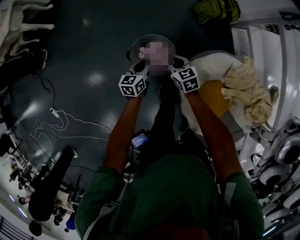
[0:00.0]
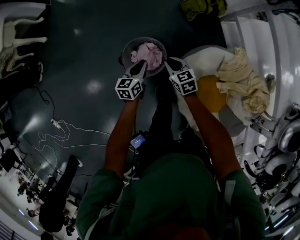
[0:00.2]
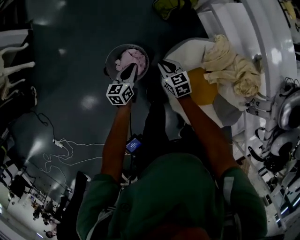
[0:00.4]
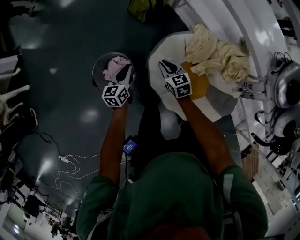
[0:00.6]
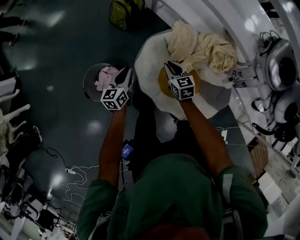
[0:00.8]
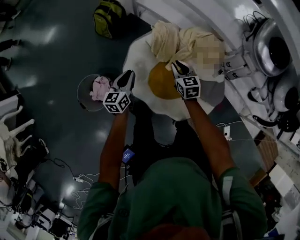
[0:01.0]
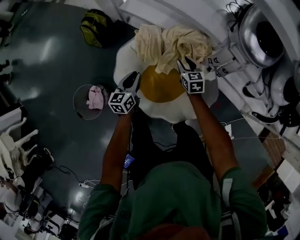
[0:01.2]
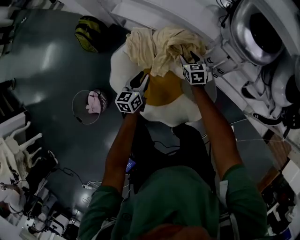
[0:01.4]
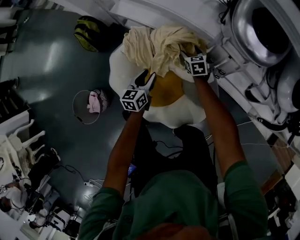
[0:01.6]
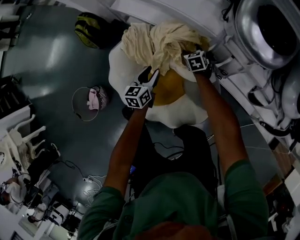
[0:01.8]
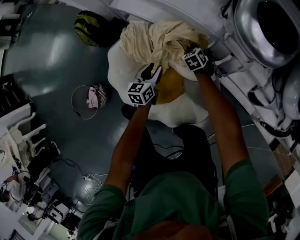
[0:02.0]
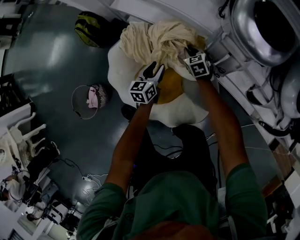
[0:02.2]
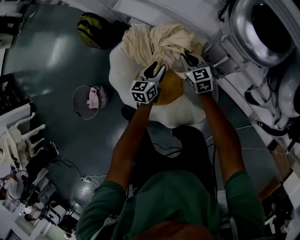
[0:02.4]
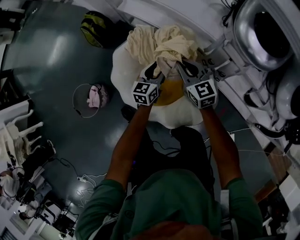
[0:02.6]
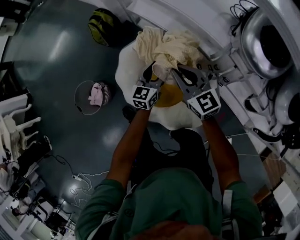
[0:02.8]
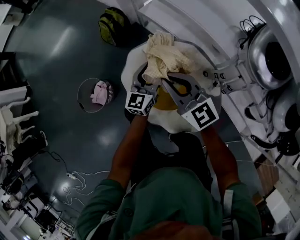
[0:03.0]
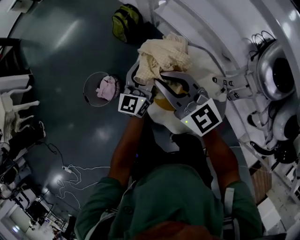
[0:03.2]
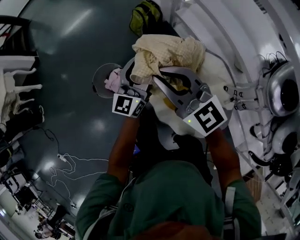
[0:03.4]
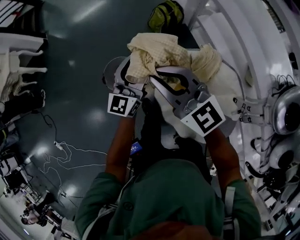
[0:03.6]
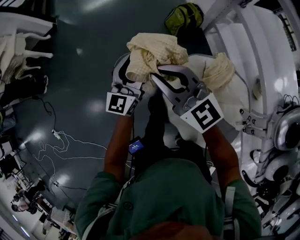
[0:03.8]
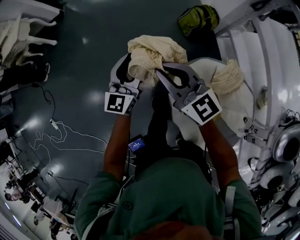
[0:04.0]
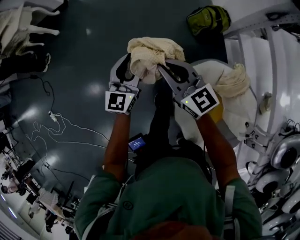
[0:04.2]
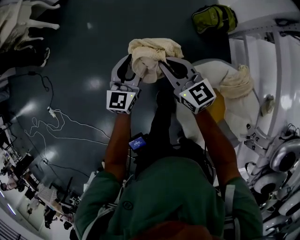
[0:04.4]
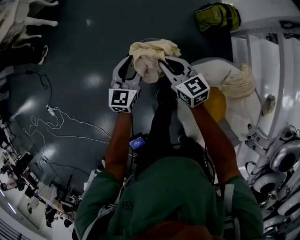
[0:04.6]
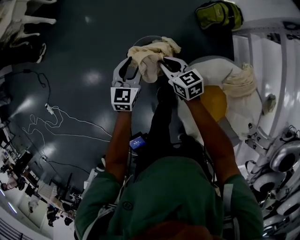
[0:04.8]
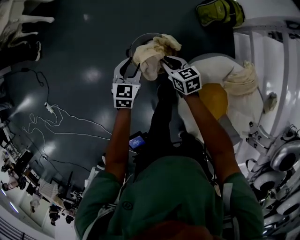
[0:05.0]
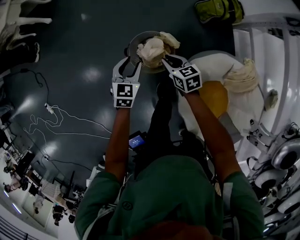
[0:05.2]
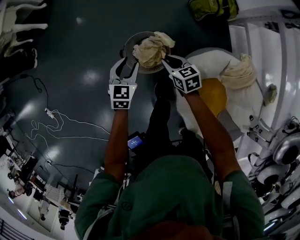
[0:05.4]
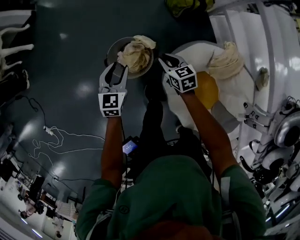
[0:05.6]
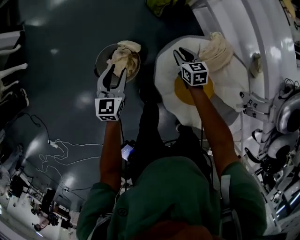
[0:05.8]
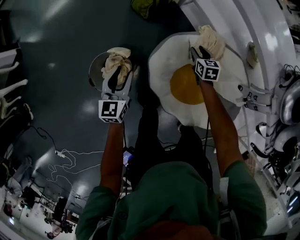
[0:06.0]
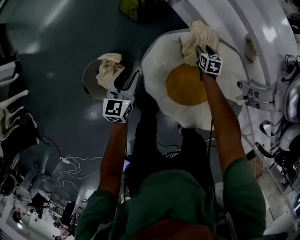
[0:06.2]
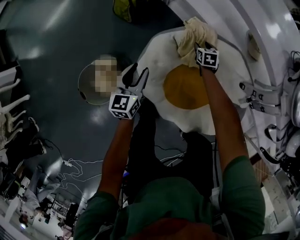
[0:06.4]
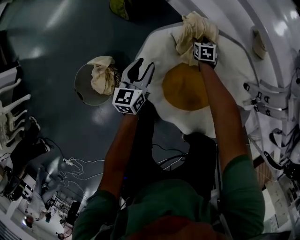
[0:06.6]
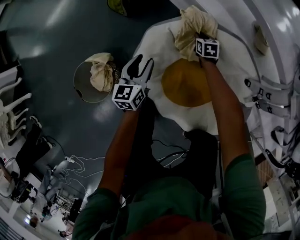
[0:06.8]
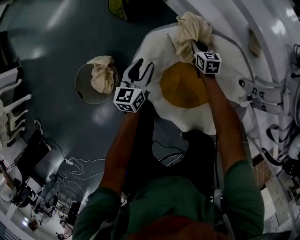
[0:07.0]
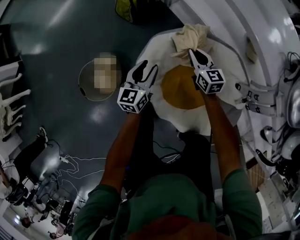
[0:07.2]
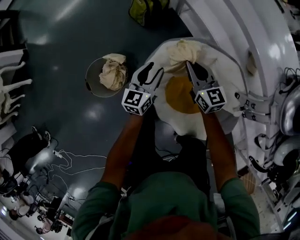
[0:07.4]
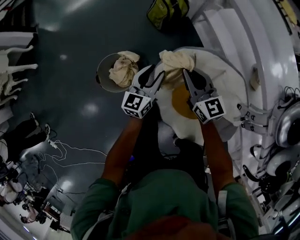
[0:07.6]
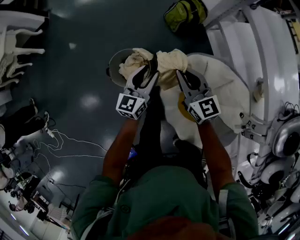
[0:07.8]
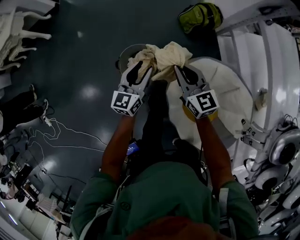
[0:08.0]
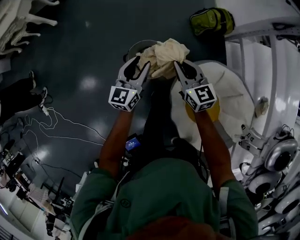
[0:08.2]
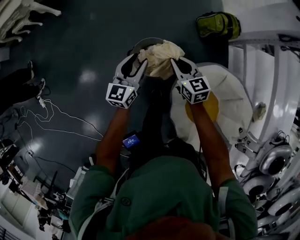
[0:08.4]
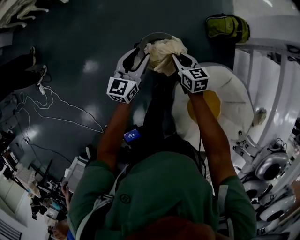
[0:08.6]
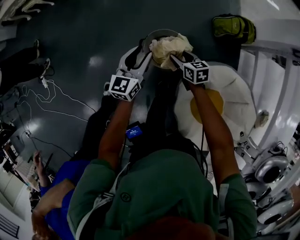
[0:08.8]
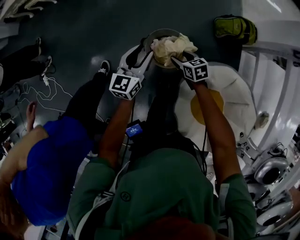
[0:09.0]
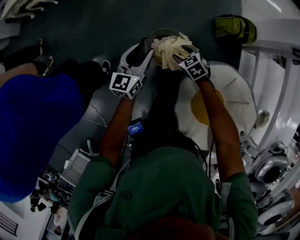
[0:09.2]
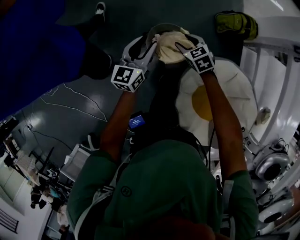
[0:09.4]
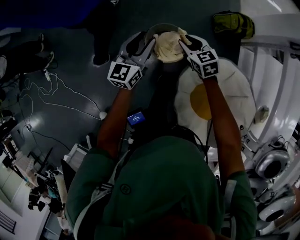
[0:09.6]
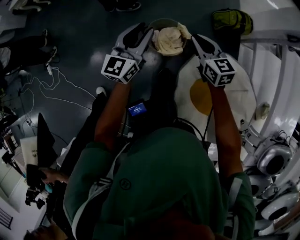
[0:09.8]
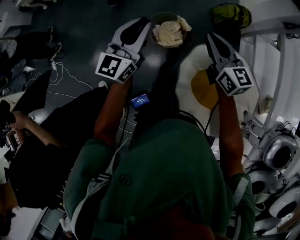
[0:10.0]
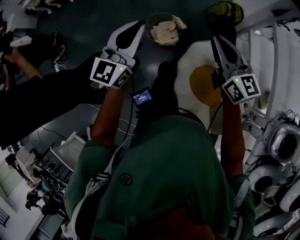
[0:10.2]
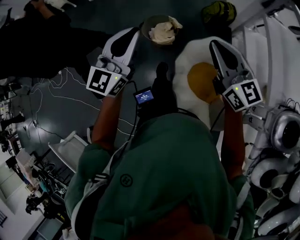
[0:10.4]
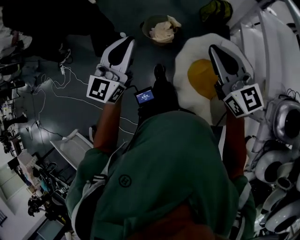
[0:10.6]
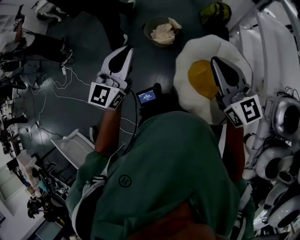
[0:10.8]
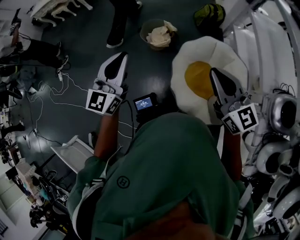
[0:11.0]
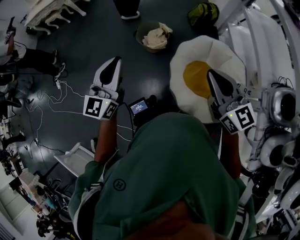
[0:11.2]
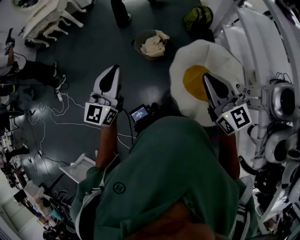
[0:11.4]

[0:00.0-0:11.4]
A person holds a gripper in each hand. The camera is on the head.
0:00.0 to 0:01.4: The pair of grippers is taken roughly 70 cm. The right gripper swivels roughly 60 degrees, and opens. Meanwhile the left gripper turns by roughly 50 degrees.
0:01.4 to 0:02.8: The right gripper goes some 25 cm upward, to the left and backward, rotates approximately 40 degrees, and closes its fingers, while the left gripper is displaced upward and to the right by approximately 10 cm, and opens its fingers.
0:02.8 to 0:04.2: Both grippers are carried roughly 60 cm. The right gripper turns by approximately 40 degrees. Meanwhile the left gripper turns by approximately 50 degrees.
0:04.2 to 0:05.6: The left gripper moves downward, roughly 15 cm, and turns by some 30 degrees; the right gripper travels downward by some 30 cm, and points its fingers some 30 degrees further downward.
0:05.6 to 0:07.2: Both grippers are carried roughly 40 cm. The left gripper changes its angle by some 30 degrees, while the right gripper rotates about 30 degrees, and opens, then closes again.
0:07.2 to 0:08.6: The two grippers travel together, roughly 50 cm. The right gripper turns by some 50 degrees. Meanwhile the left gripper changes its angle by approximately 40 degrees.
0:08.6 to 0:10.0: Both grippers move upward and backward, some 30 cm. The right gripper changes its angle by about 30 degrees, and opens, then closes once more, while the left gripper closes its fingers.
0:10.0 to 0:11.4: The right gripper moves backward and upward, about 40 cm. The left gripper heads backward, covering some 30 cm.

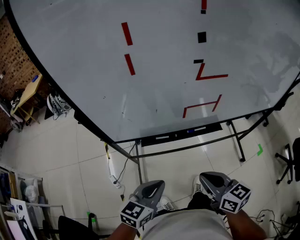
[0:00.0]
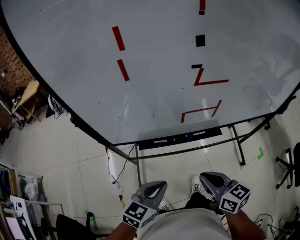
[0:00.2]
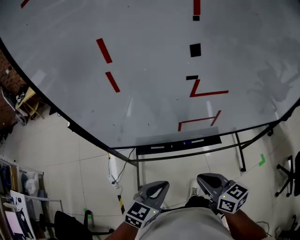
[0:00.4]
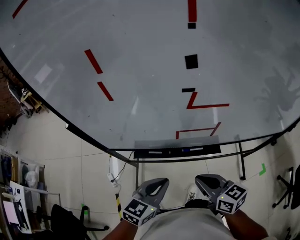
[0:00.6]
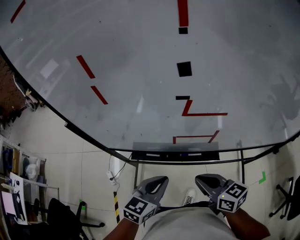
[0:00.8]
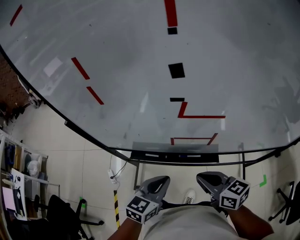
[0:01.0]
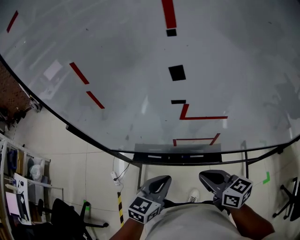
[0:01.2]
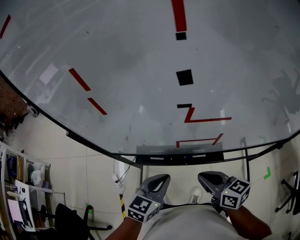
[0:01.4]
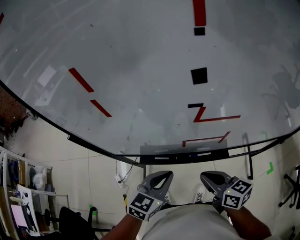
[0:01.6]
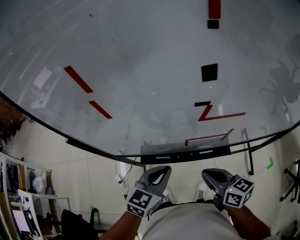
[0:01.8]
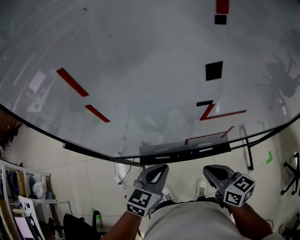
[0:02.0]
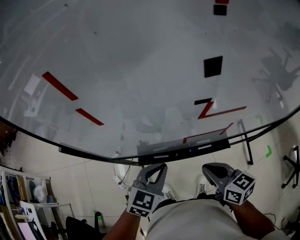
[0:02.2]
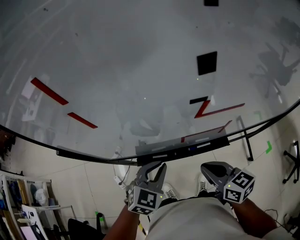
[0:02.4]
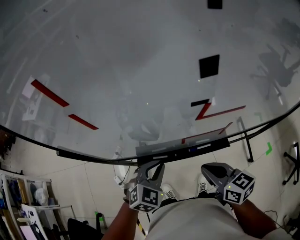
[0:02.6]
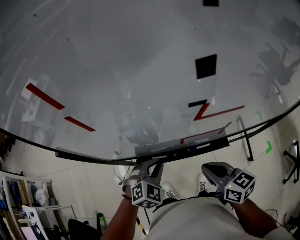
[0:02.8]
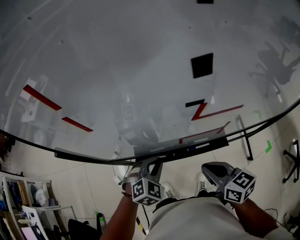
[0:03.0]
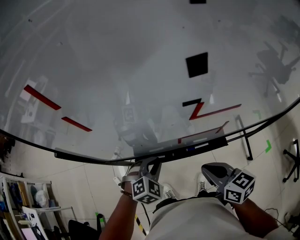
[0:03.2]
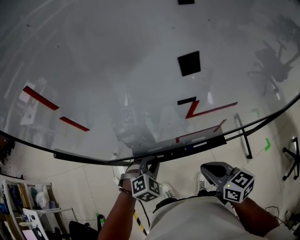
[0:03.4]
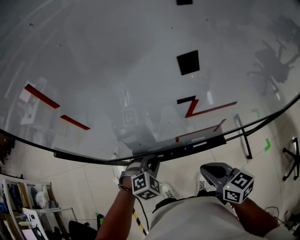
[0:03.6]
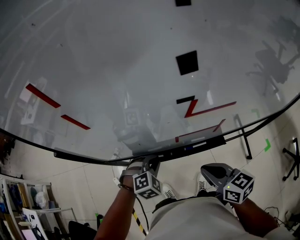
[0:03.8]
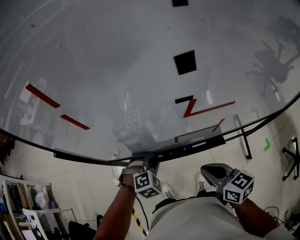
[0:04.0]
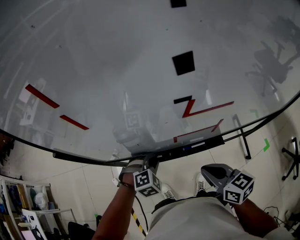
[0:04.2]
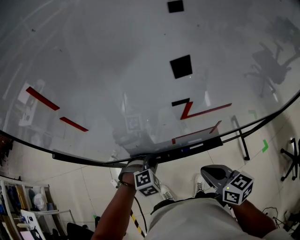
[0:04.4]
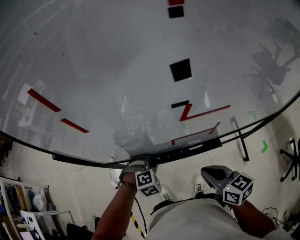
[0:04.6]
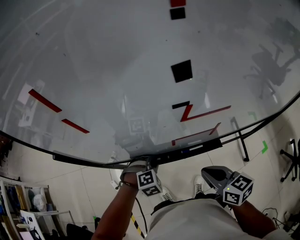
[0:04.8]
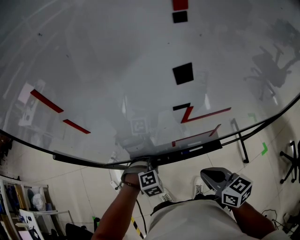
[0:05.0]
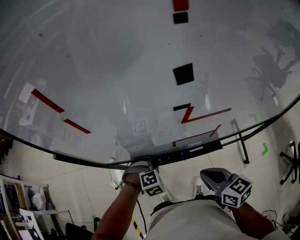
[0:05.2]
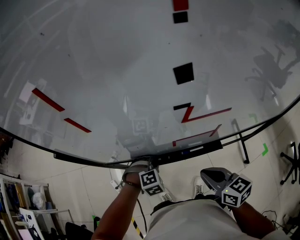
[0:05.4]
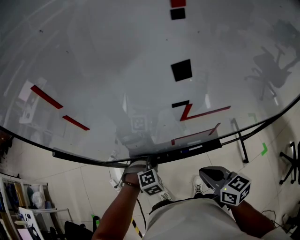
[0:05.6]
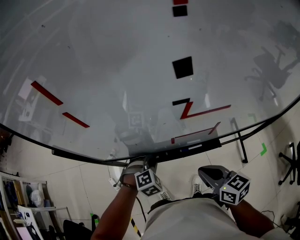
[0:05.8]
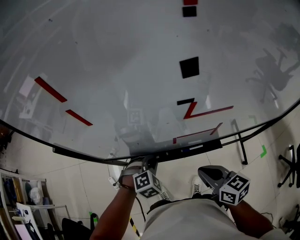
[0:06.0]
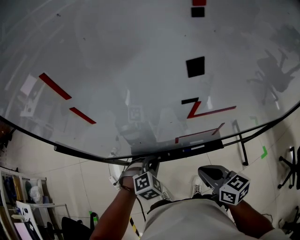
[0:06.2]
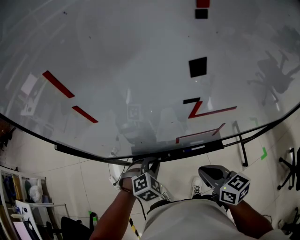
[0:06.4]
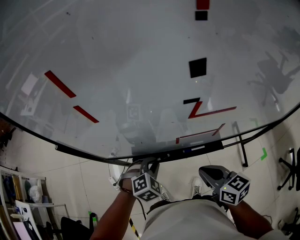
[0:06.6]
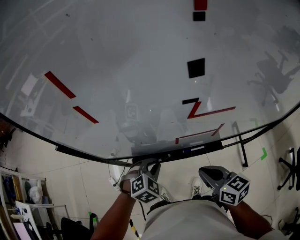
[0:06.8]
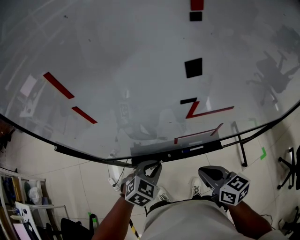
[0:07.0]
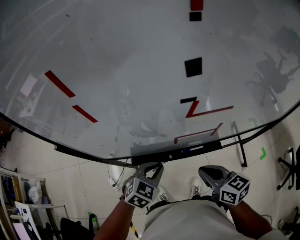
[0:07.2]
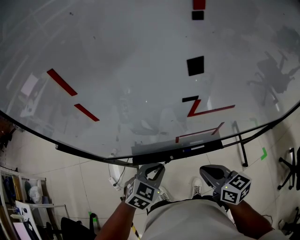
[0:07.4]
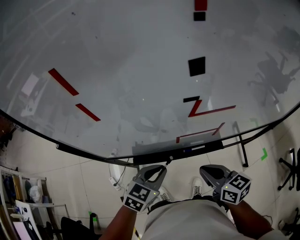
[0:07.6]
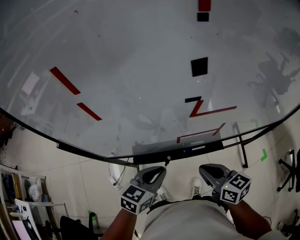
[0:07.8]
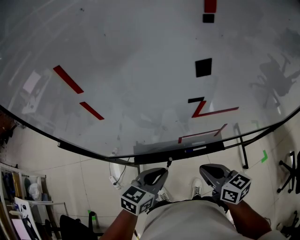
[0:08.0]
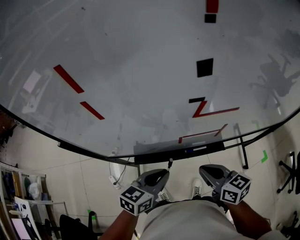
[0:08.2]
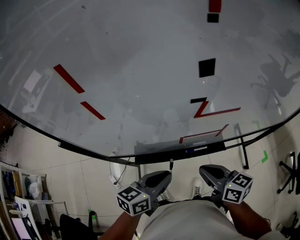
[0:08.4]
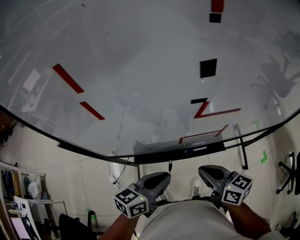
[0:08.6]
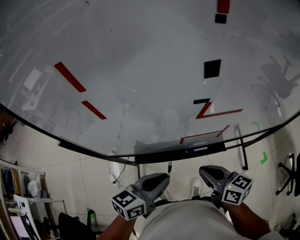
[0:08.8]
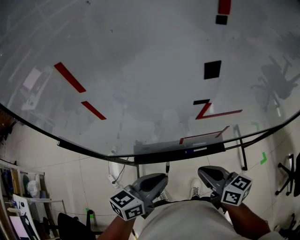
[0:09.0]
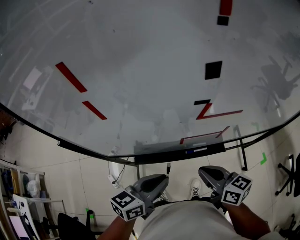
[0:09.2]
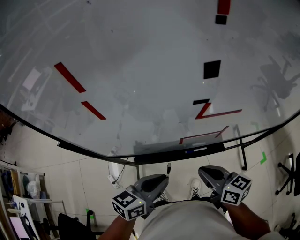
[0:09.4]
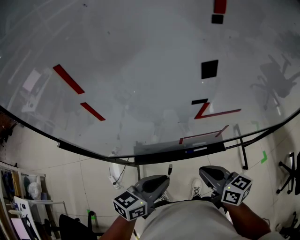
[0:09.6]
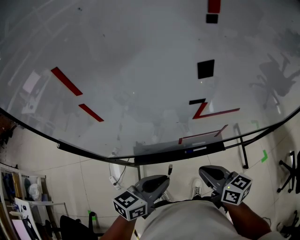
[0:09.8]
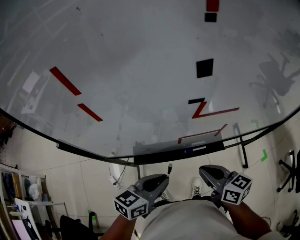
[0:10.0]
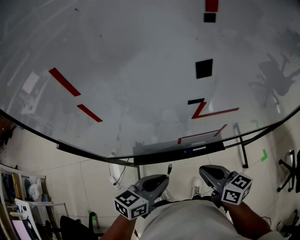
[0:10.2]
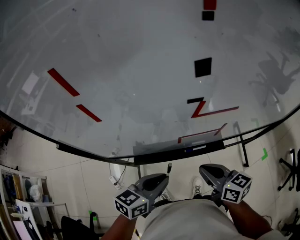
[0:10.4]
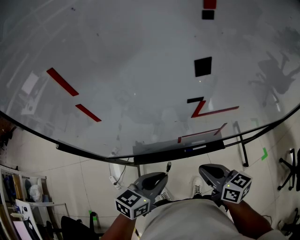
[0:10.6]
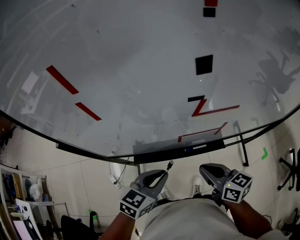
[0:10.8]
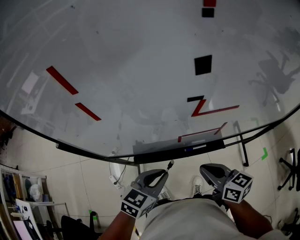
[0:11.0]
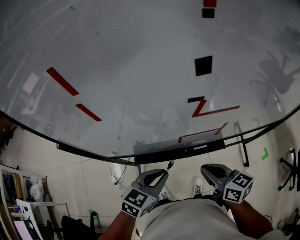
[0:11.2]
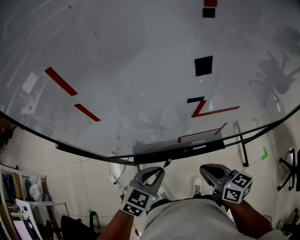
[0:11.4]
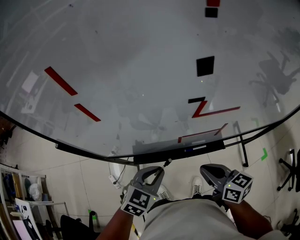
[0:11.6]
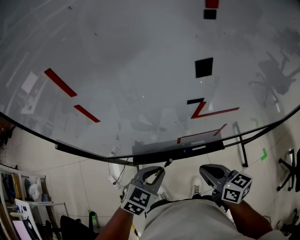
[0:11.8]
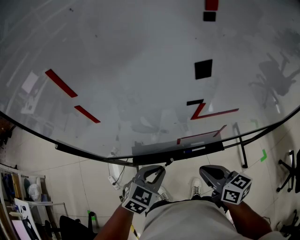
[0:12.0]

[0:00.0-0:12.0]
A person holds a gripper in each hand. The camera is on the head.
0:00.0 to 0:01.6: The grippers both shift forward and to the right by roughly 15 cm.
0:01.6 to 0:03.0: The left gripper shifts about 10 cm downward and forward, and rotates about 40 degrees.
0:03.0 to 0:04.4: The left gripper is displaced downward by about 5 cm, and turns by approximately 20 degrees.
0:04.4 to 0:06.0: The grippers make only small movements.
0:06.0 to 0:07.6: The left gripper is displaced upward by roughly 10 cm, and rotates around the line of its fingers by some 40 degrees, counterclockwise from behind.
0:07.6 to 0:09.0: The left gripper heads upward, covering about 5 cm, and rotates roughly 30 degrees.
0:09.0 to 0:10.4: There are only small adjustments of the grippers.
0:10.4 to 0:12.0: The left gripper swivels approximately 40 degrees.
